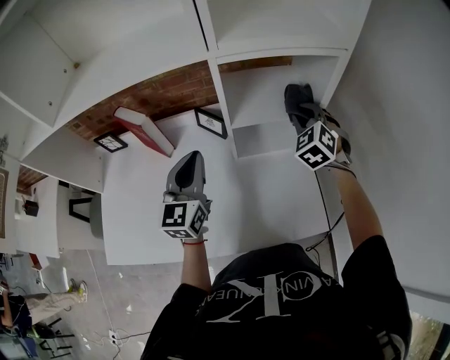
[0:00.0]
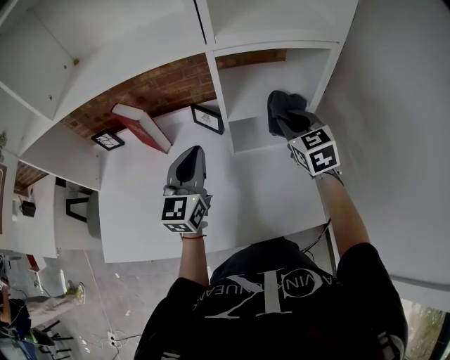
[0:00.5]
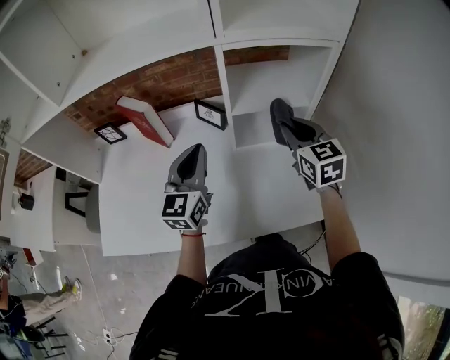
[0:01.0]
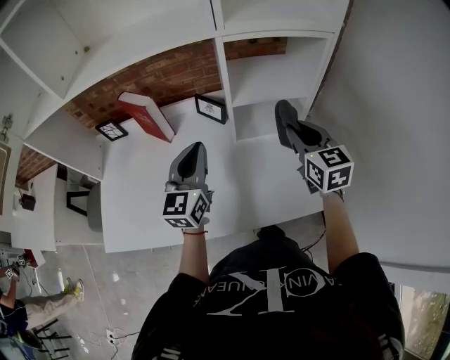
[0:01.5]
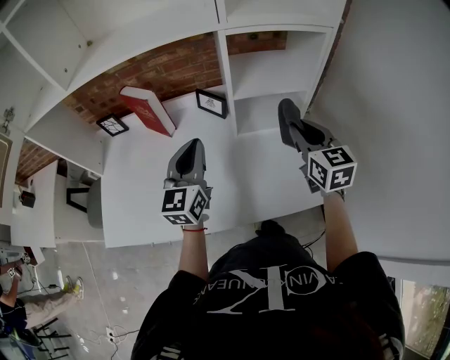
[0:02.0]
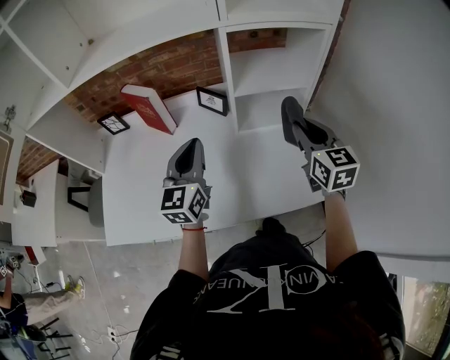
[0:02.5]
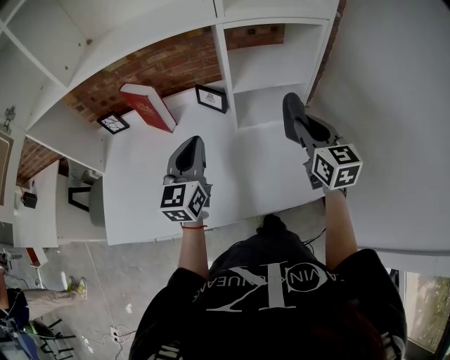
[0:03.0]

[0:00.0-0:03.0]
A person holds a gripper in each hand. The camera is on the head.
0:00.0 to 0:01.5: The right gripper goes roughly 15 cm backward, and rotates around the line of its fingers by some 40 degrees, clockwise from behind, while the left gripper goes about 5 cm backward.
0:01.5 to 0:03.0: There are only small adjustments of the grippers.

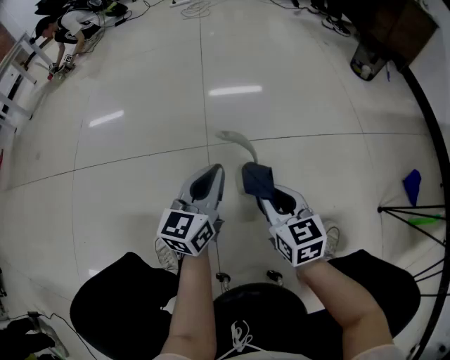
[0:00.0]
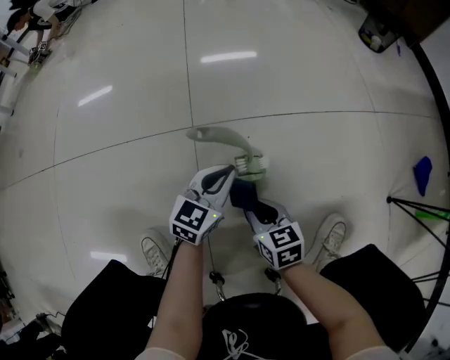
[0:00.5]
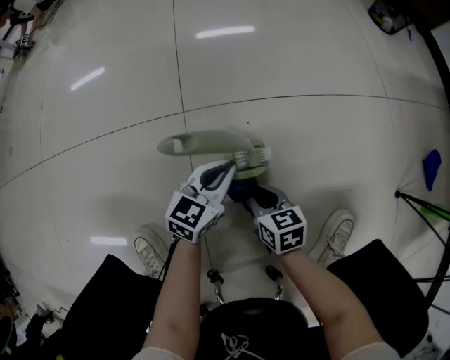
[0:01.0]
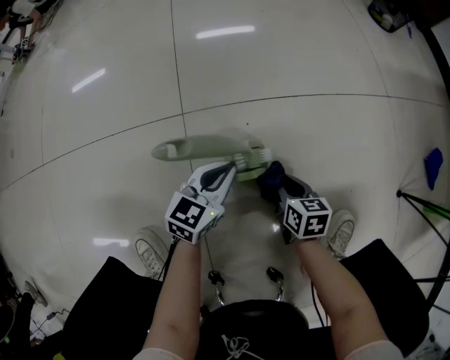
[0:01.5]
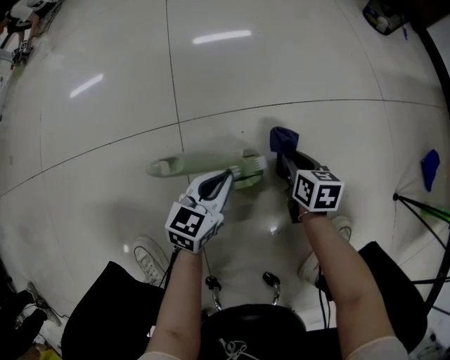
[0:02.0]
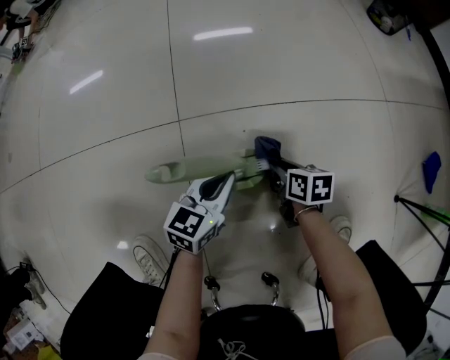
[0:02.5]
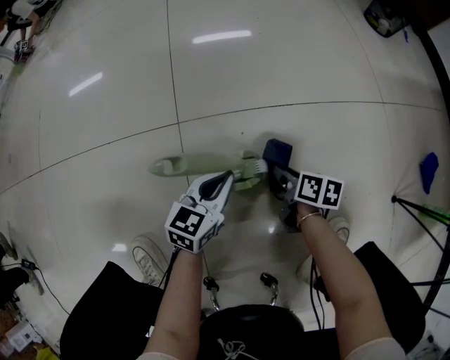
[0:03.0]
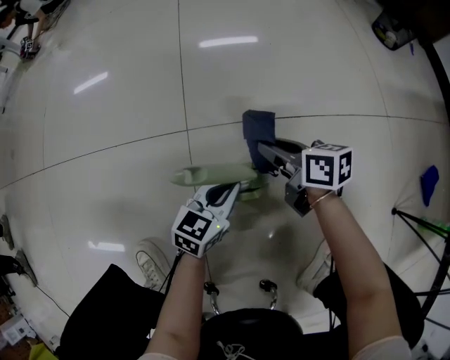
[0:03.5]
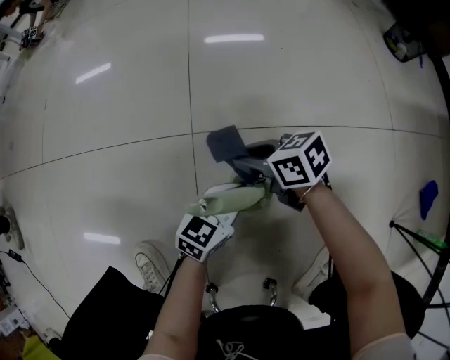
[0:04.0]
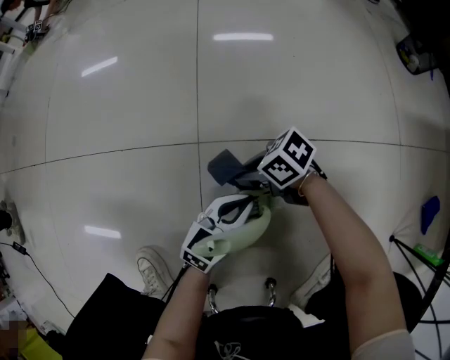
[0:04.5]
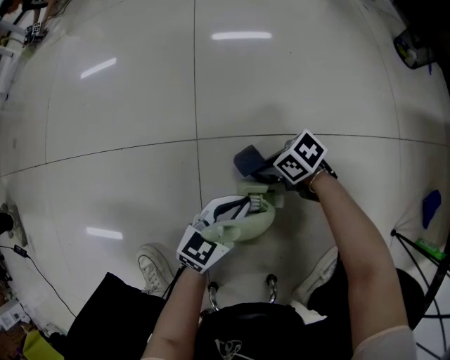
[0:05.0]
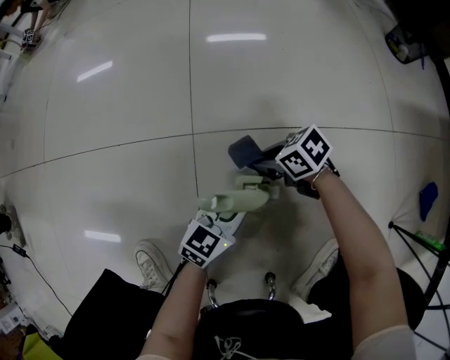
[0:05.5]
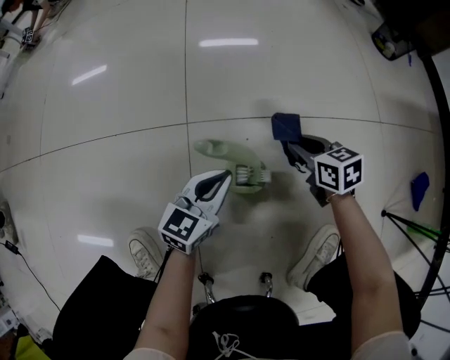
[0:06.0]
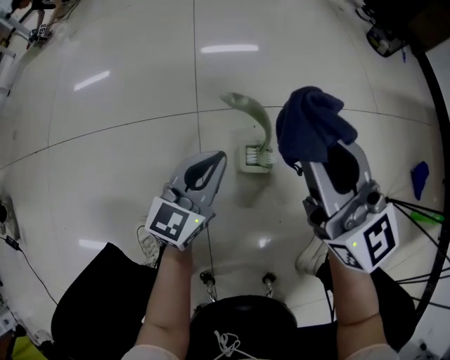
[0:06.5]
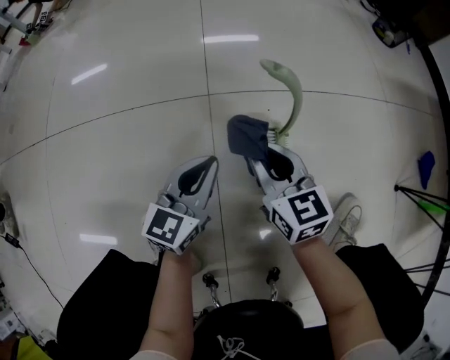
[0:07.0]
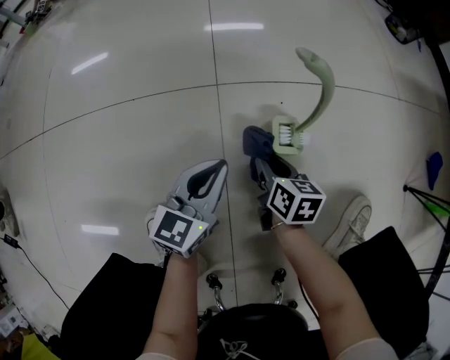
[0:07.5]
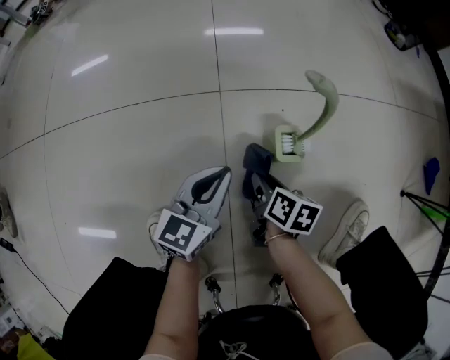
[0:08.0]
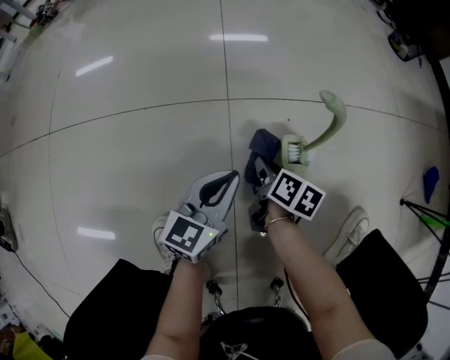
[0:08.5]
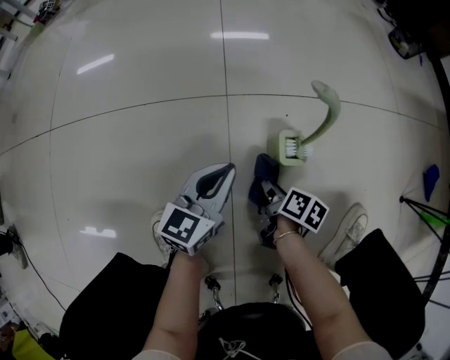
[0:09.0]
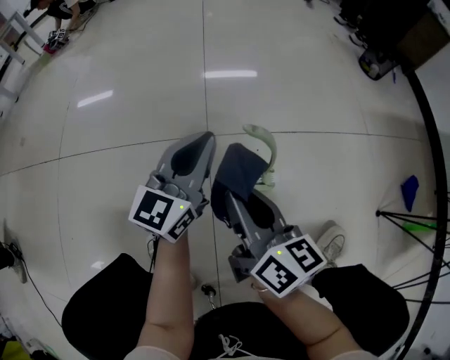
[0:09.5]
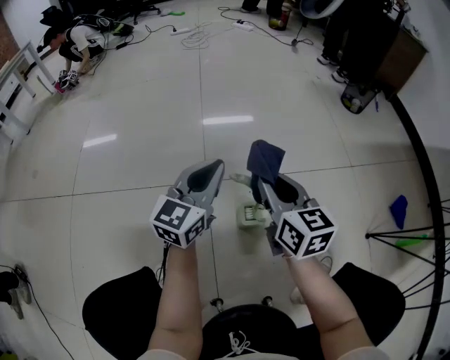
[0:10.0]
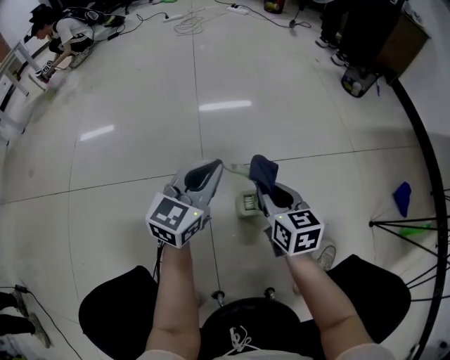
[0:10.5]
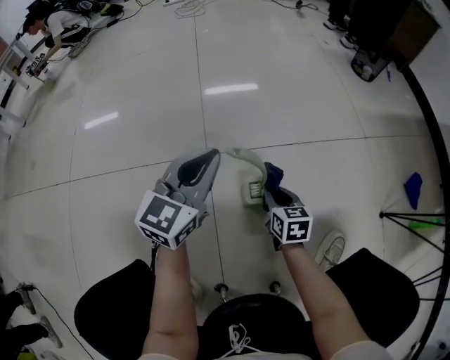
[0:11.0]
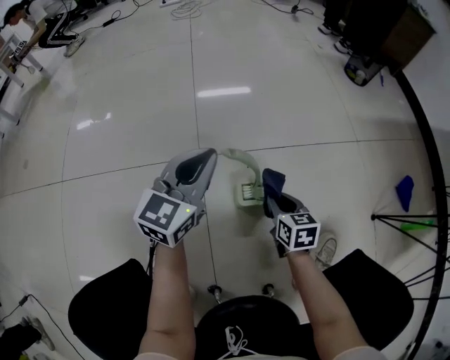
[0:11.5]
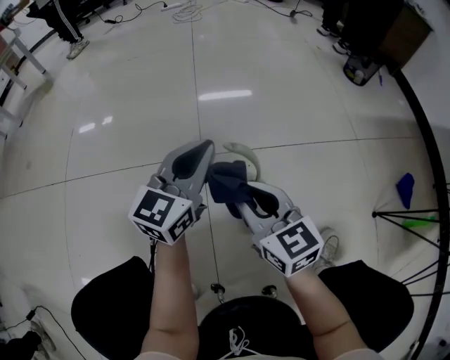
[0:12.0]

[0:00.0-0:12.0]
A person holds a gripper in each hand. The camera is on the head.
0:00.0 to 0:02.0: The right gripper shifts some 30 cm downward, forward and to the right, and turns by approximately 30 degrees. Meanwhile the left gripper heads downward, covering roughly 20 cm, and changes its angle by about 30 degrees.
0:02.0 to 0:04.0: The right gripper shifts by roughly 20 cm, and changes its angle by about 50 degrees.
0:04.0 to 0:06.0: The left gripper ends up roughly 5 cm from where it was. The right gripper moves about 10 cm downward and comes back, and rotates approximately 30 degrees.
0:06.0 to 0:08.0: The left gripper moves to the left and backward, some 15 cm, while the right gripper shifts some 25 cm backward and to the left, goes upward and returns, about 30 cm each way, and rotates around the line of its fingers by roughly 40 degrees, clockwise from behind.
0:08.0 to 0:10.0: The right gripper shifts about 35 cm upward, and swivels about 50 degrees; the left gripper is displaced upward and forward by approximately 30 cm.
0:10.0 to 0:12.0: The right gripper moves backward and to the left, some 10 cm, and reaches approximately 25 cm downward, then returns.

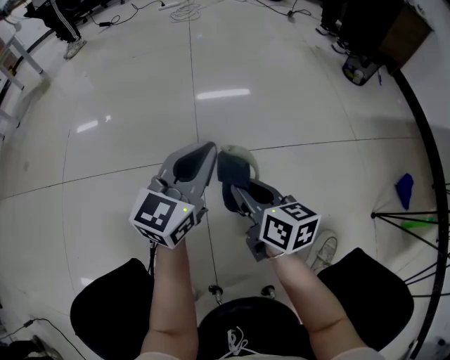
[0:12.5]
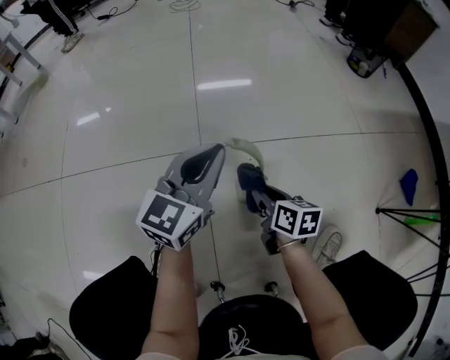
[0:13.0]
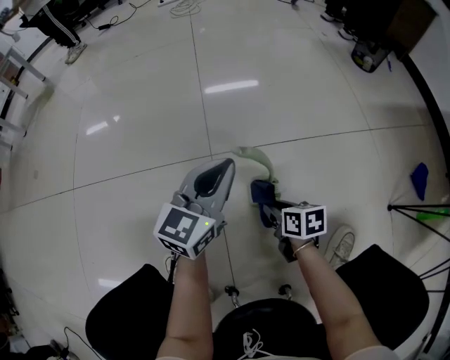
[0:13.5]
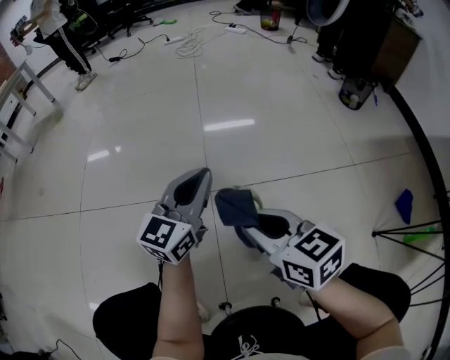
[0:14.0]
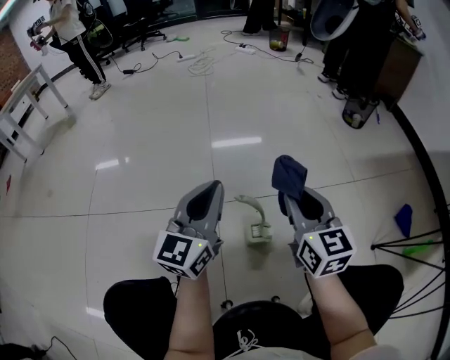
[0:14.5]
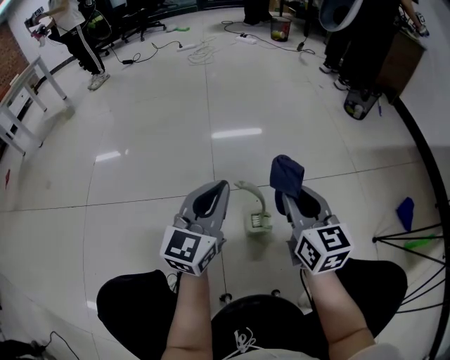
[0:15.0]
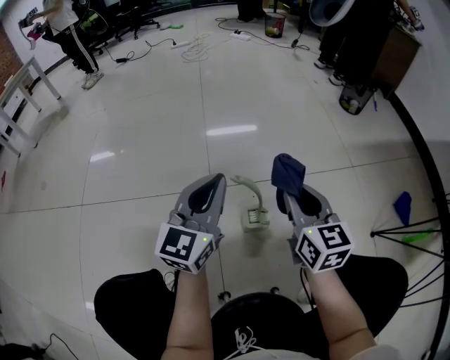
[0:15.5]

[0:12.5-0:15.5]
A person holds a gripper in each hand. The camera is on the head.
0:12.5 to 0:14.0: The left gripper travels upward by about 5 cm. Meanwhile the right gripper goes approximately 15 cm upward, and turns by about 20 degrees.
0:14.0 to 0:15.5: The right gripper shifts approximately 10 cm to the right, and changes its angle by approximately 30 degrees; the left gripper is displaced backward by some 5 cm.

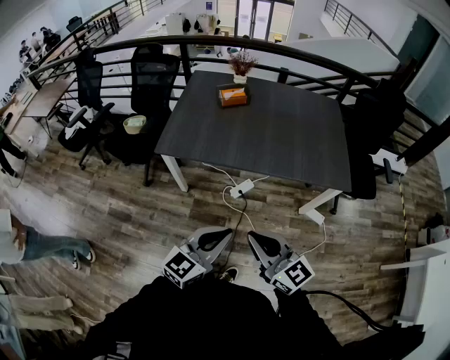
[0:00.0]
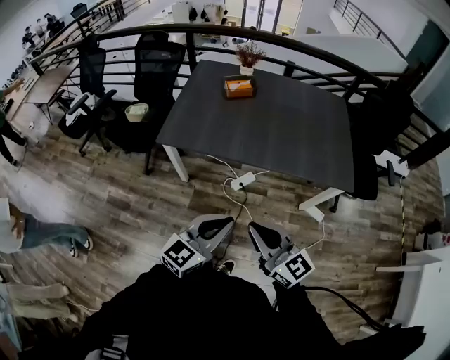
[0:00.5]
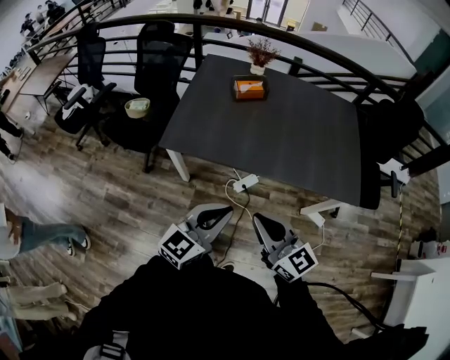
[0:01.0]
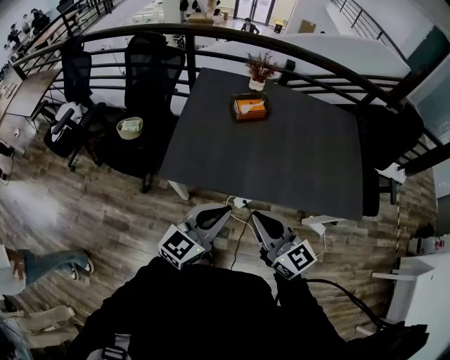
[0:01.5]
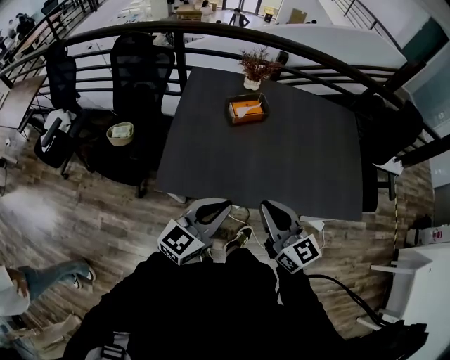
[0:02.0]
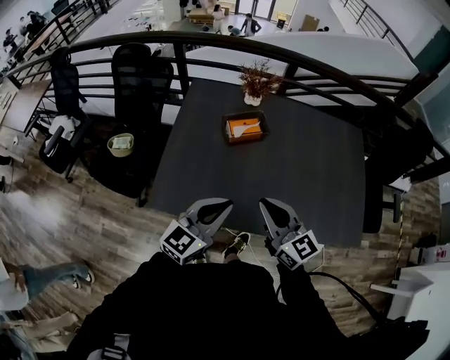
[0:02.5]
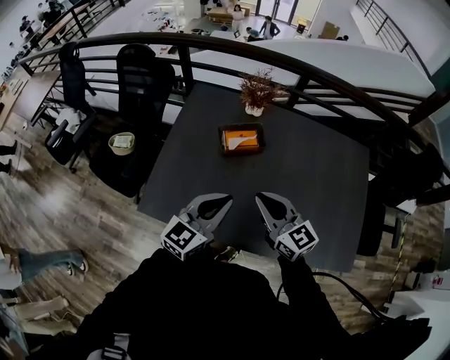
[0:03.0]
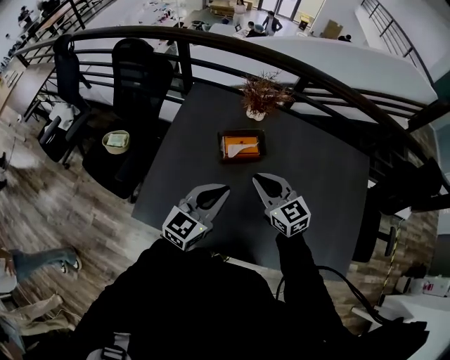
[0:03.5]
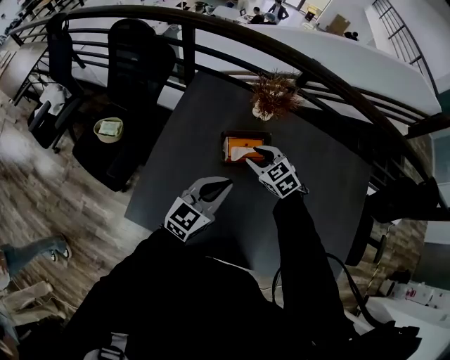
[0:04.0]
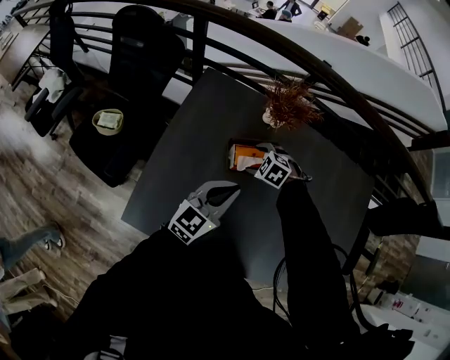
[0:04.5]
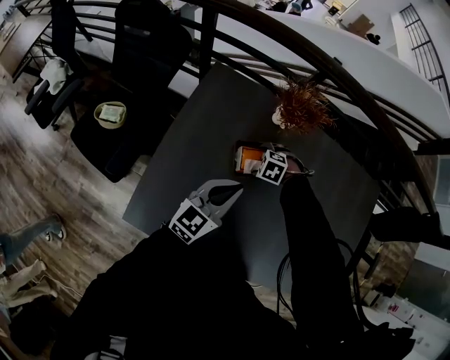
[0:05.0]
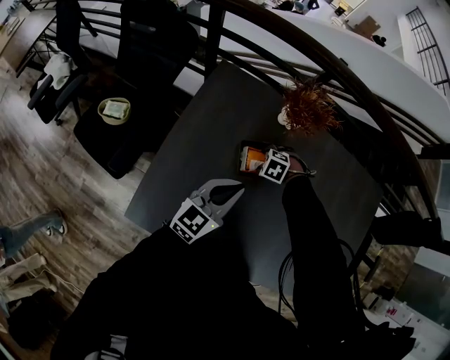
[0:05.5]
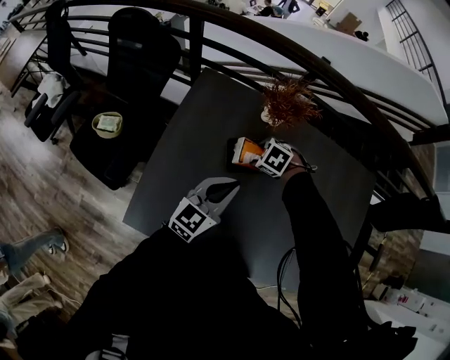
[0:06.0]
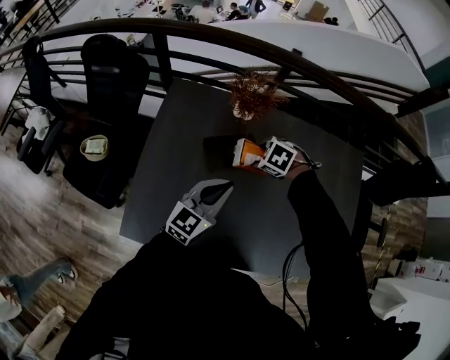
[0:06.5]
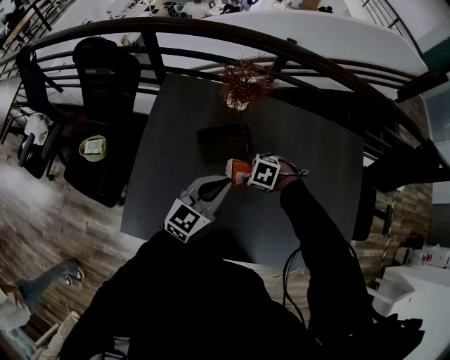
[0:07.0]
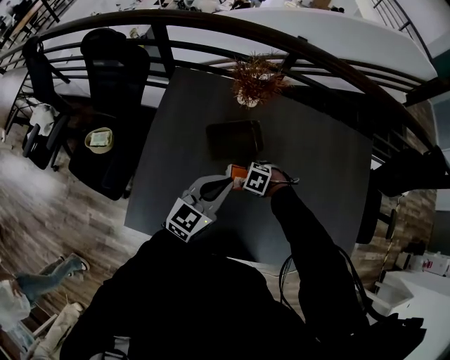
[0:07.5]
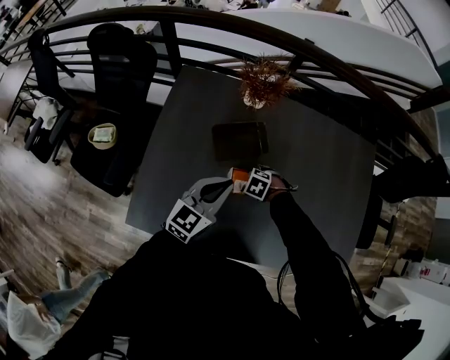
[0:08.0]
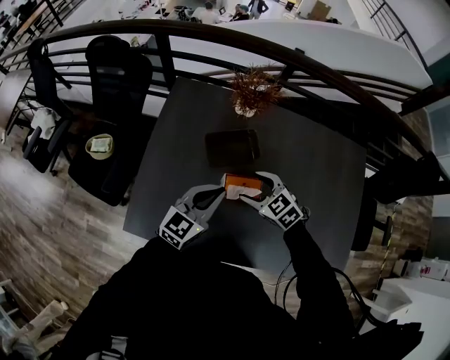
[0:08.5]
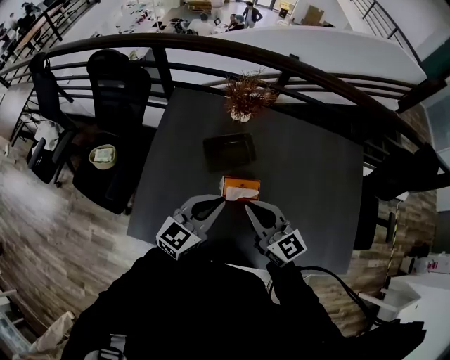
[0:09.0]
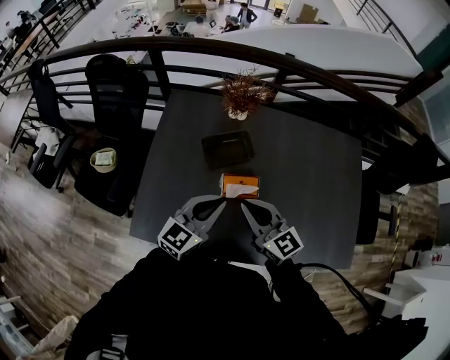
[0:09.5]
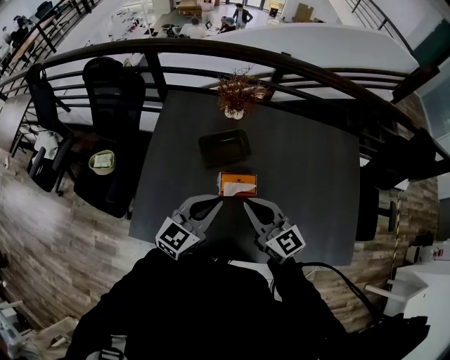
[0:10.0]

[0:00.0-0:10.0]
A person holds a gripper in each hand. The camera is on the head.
0:00.0 to 0:02.0: The right gripper moves forward, roughly 35 cm; the left gripper goes some 40 cm forward and to the left.
0:02.0 to 0:04.0: The left gripper heads forward, covering about 30 cm. The right gripper shifts some 50 cm forward and downward, and tips its fingers downward by about 40 degrees.
0:04.0 to 0:06.0: The right gripper goes approximately 5 cm downward, tilts its fingers roughly 30 degrees downward, and opens, then closes once more.
0:06.0 to 0:08.0: The right gripper moves some 20 cm; the left gripper ends up approximately 5 cm from where it was.
0:08.0 to 0:10.0: The left gripper ends up about 10 cm from where it was, while the right gripper moves upward, roughly 30 cm, tips its fingers upward by some 70 degrees, and closes its fingers.
